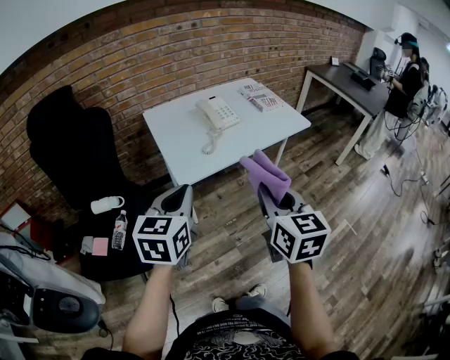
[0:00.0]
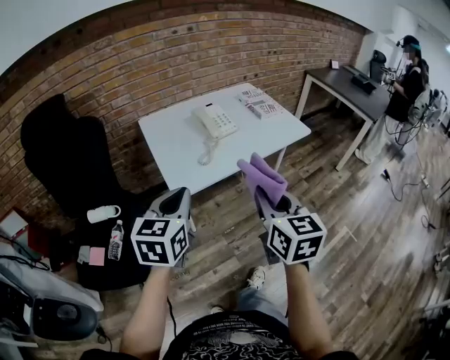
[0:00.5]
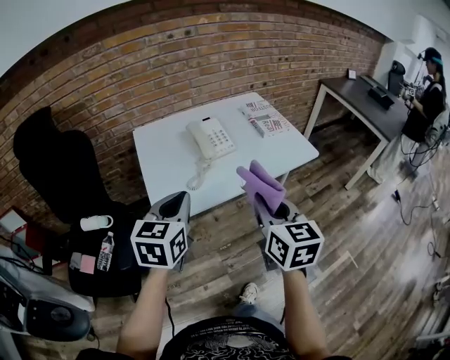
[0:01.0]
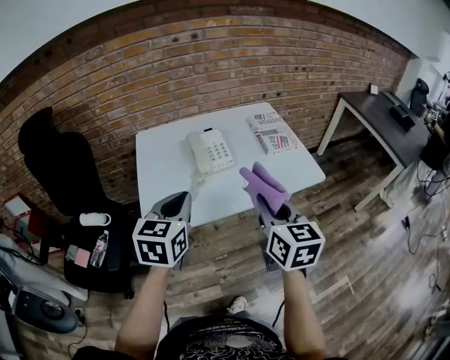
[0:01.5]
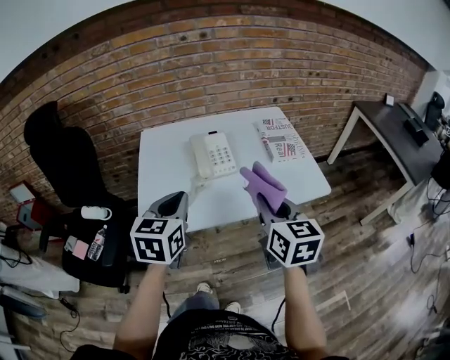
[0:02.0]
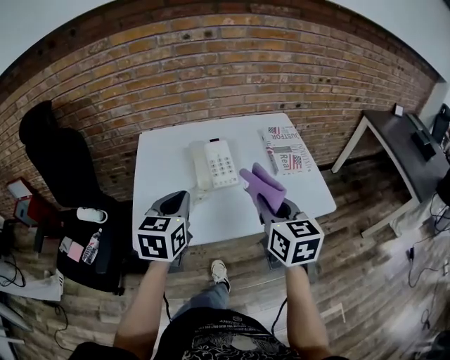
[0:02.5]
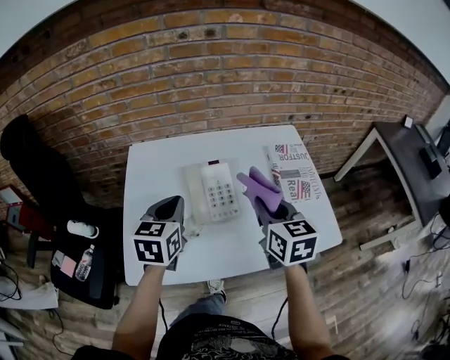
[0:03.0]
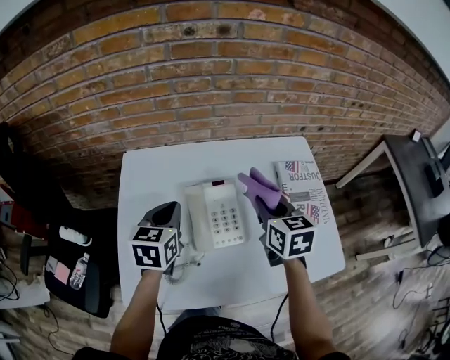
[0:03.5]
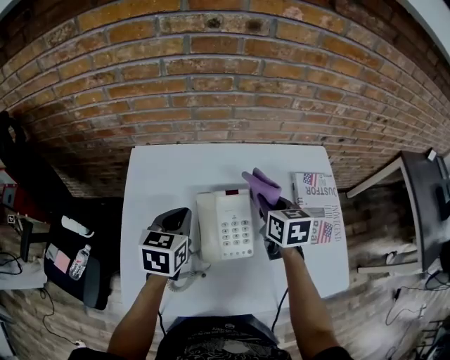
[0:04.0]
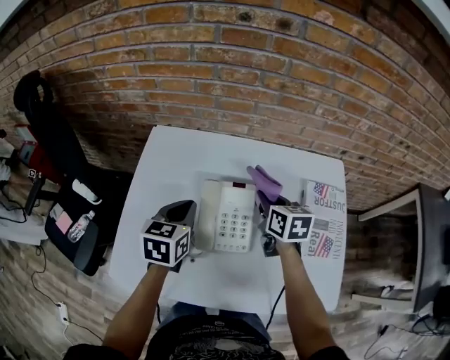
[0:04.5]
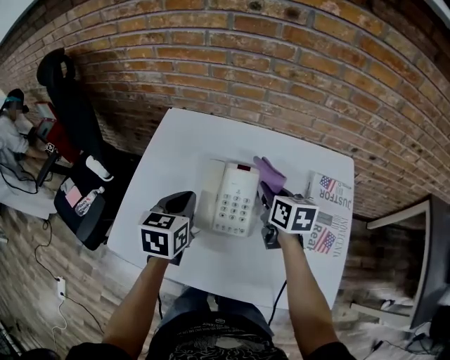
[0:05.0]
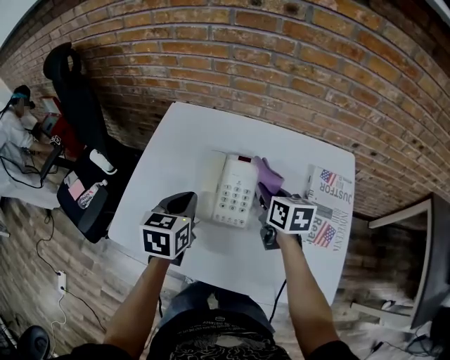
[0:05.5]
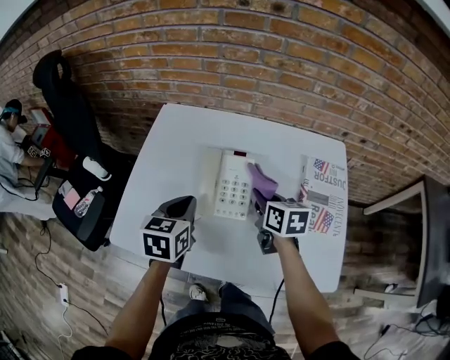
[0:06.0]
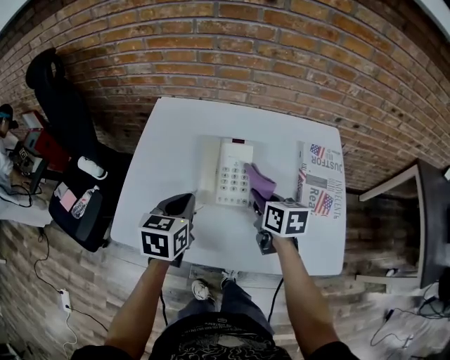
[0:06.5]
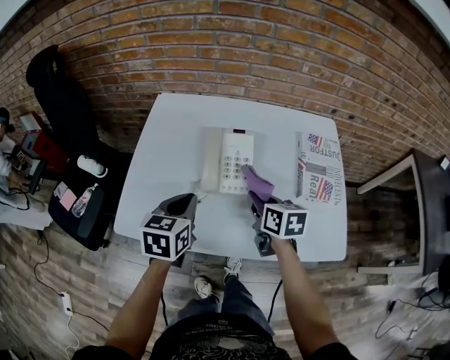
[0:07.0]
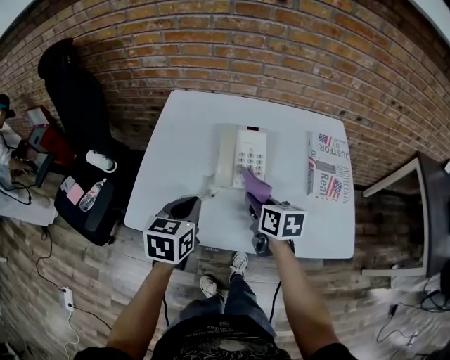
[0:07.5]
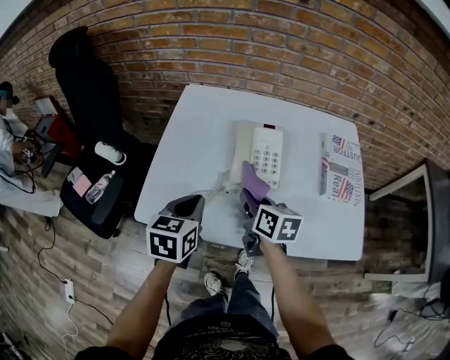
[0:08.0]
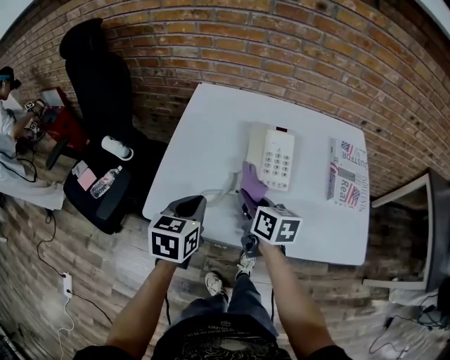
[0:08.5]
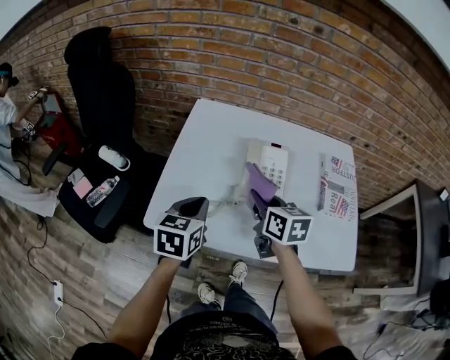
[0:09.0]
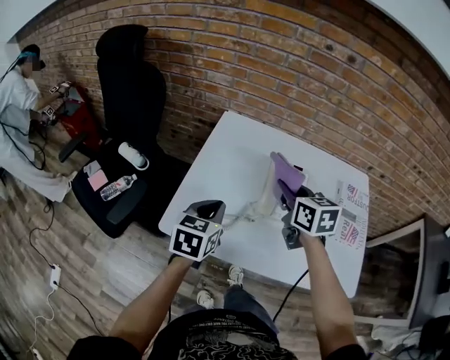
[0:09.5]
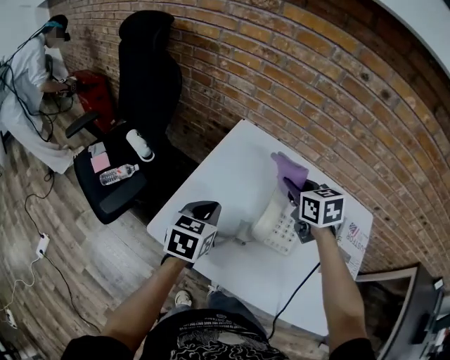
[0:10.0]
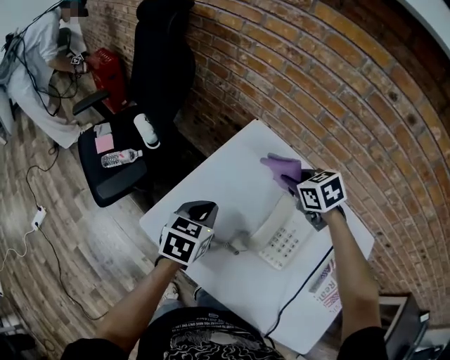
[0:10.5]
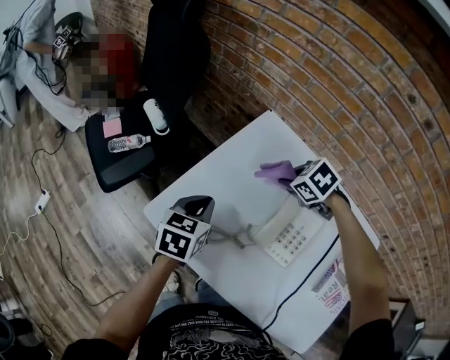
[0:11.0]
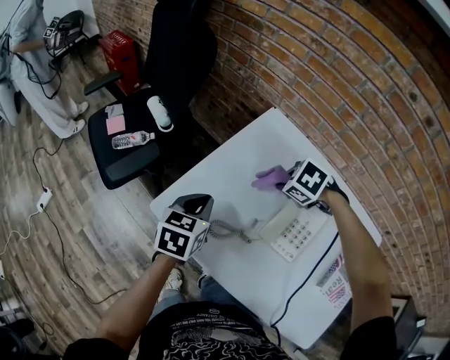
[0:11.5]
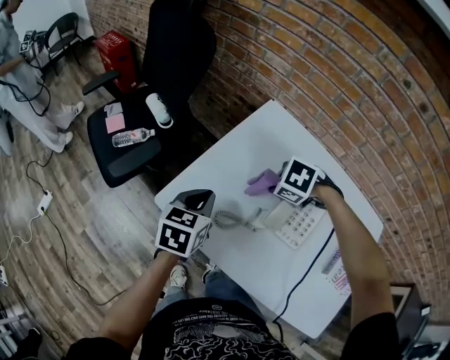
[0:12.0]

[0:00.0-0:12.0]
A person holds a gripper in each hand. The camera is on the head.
0:00.0 to 0:02.0: Both grippers travel together forward and to the right, about 35 cm.
0:02.0 to 0:04.0: The two grippers go some 35 cm forward. The right gripper changes its angle by some 20 degrees.
0:04.0 to 0:06.0: The right gripper shifts roughly 10 cm backward, while the left gripper is displaced backward by about 10 cm.
0:06.0 to 0:08.0: The left gripper is displaced backward and to the left by approximately 10 cm. Meanwhile the right gripper travels to the left and backward by approximately 15 cm.
0:08.0 to 0:10.0: The left gripper shifts approximately 10 cm forward. The right gripper goes approximately 20 cm forward and upward, and rotates roughly 40 degrees.
0:10.0 to 0:12.0: The right gripper shifts roughly 10 cm downward, and angles its fingers downward, by roughly 50 degrees. The left gripper ends up roughly 5 cm from where it was.

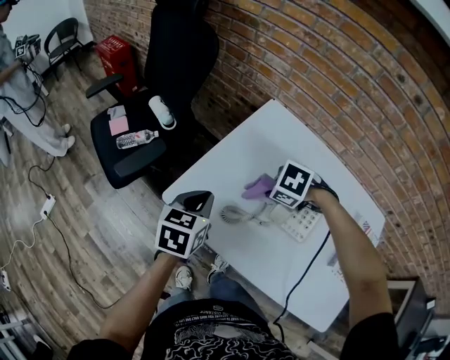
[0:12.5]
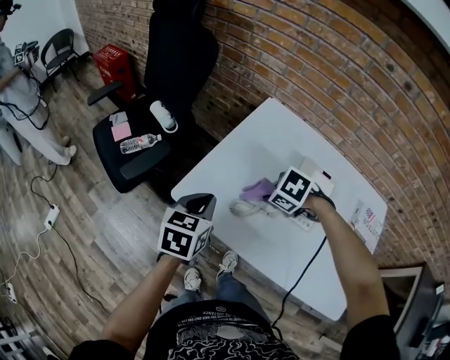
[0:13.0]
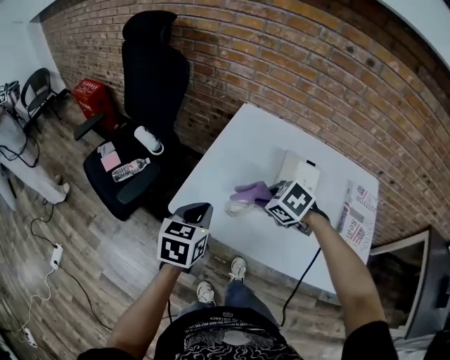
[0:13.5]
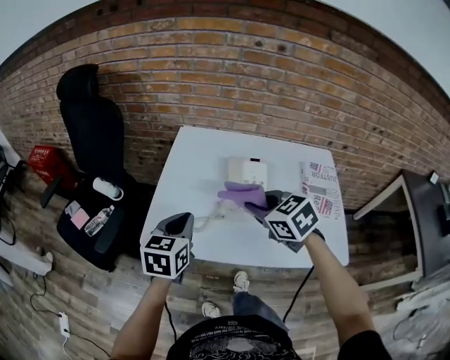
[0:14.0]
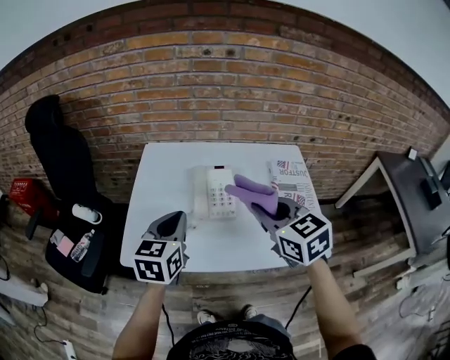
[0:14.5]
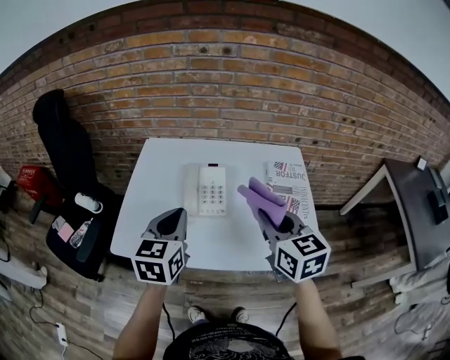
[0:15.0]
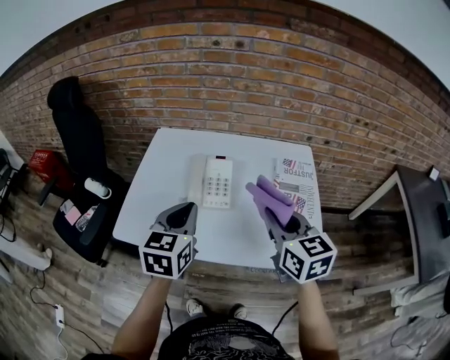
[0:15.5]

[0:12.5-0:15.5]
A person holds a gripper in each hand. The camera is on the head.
0:12.5 to 0:14.0: The left gripper changes place by about 10 cm, and rotates roughly 20 degrees, while the right gripper is displaced upward by about 15 cm, and tips its fingers upward by approximately 40 degrees.
0:14.0 to 0:15.5: The left gripper moves to the right and upward, approximately 20 cm; the right gripper heads to the right, covering some 20 cm, and turns by roughly 40 degrees.

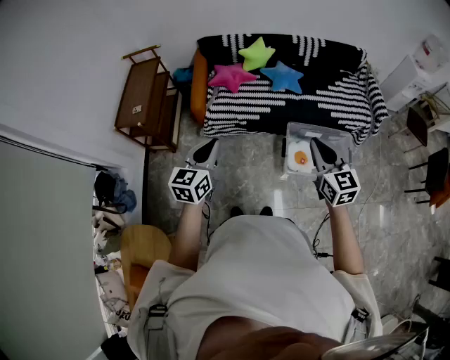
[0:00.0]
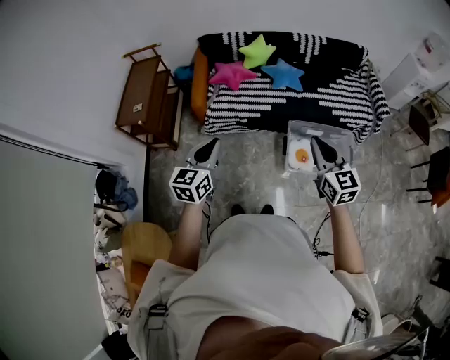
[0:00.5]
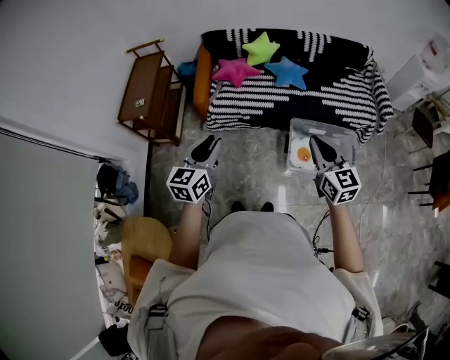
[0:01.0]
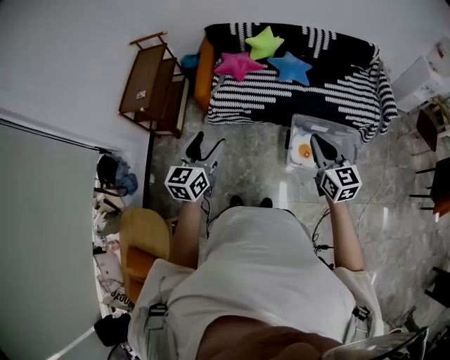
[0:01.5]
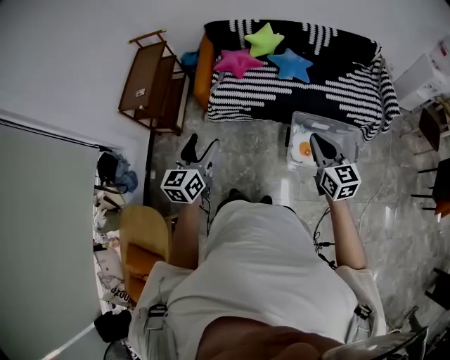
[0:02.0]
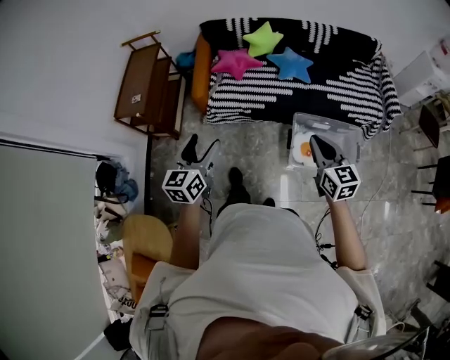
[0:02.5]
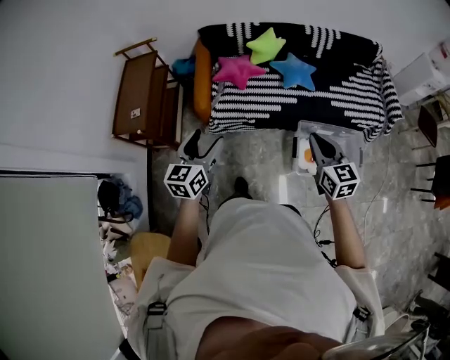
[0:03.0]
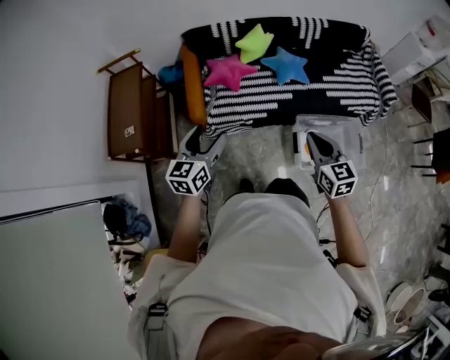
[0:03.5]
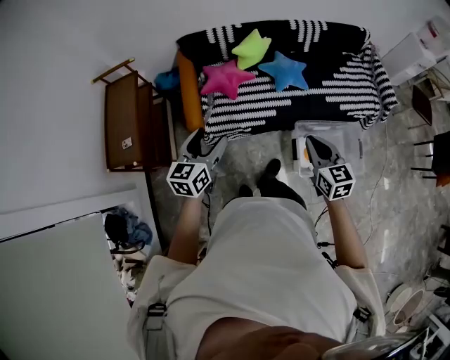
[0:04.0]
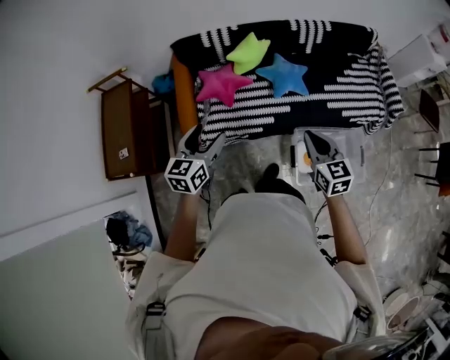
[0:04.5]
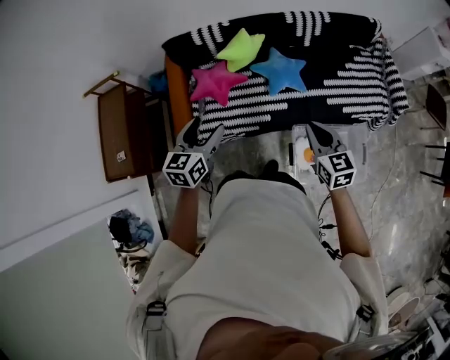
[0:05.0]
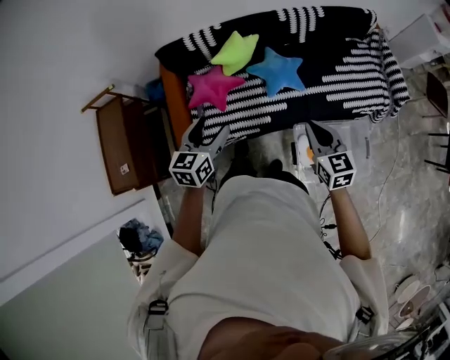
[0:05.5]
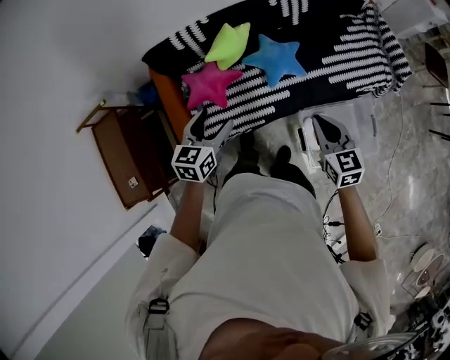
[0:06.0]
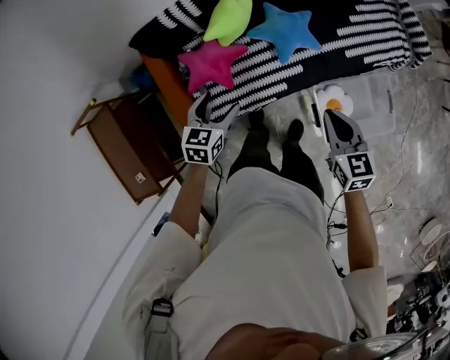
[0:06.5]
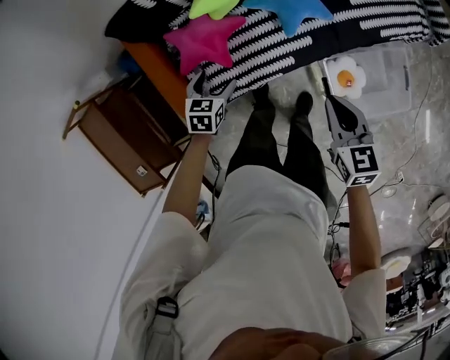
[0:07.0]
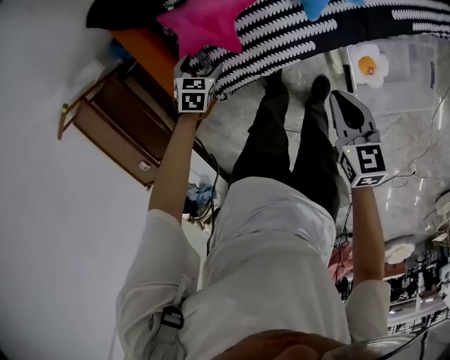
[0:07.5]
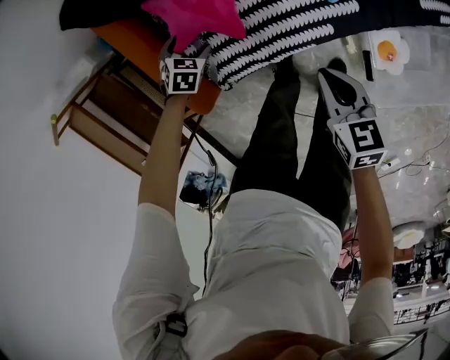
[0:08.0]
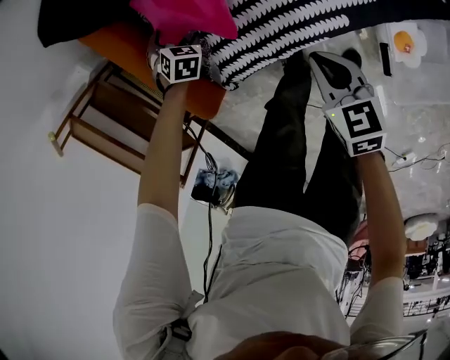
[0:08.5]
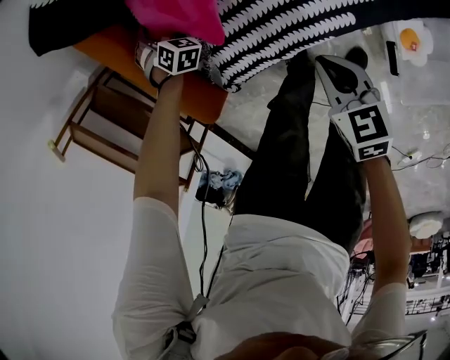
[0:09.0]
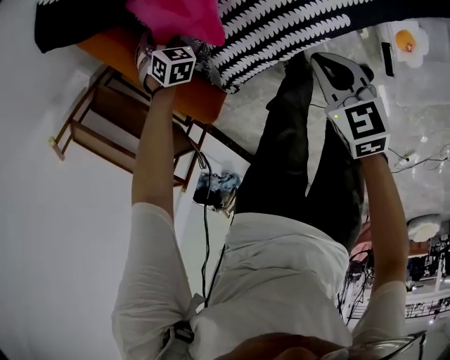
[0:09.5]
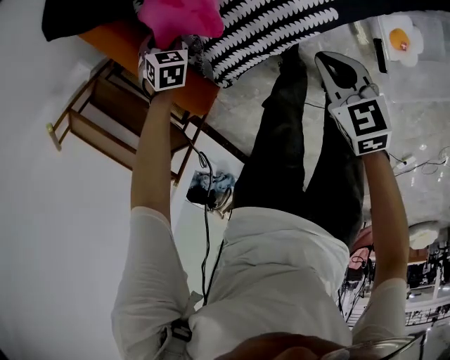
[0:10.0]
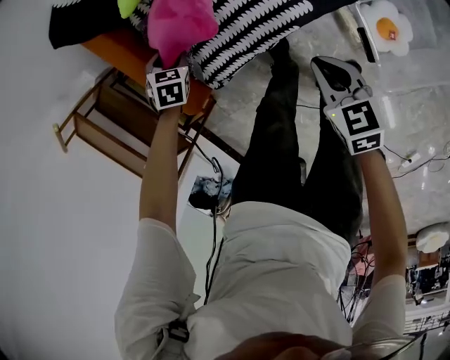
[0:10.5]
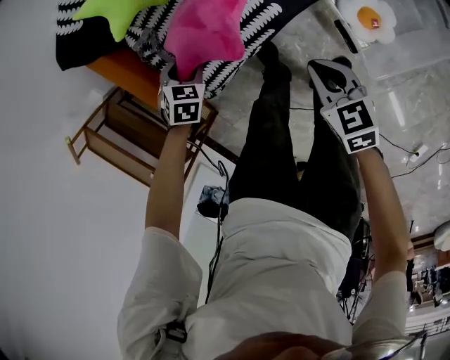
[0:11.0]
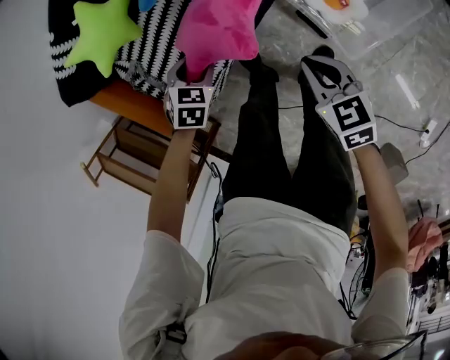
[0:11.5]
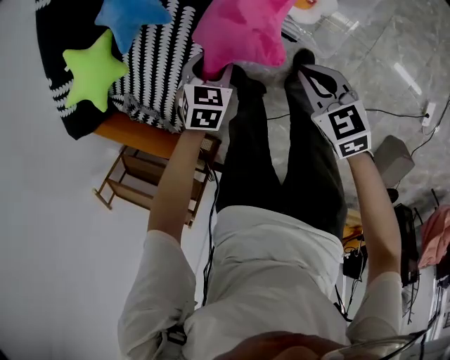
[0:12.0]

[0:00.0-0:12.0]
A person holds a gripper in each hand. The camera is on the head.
0:00.0 to 0:02.0: The left gripper opens its fingers. The right gripper goes approximately 5 cm to the right.
0:02.0 to 0:04.0: The right gripper goes some 30 cm forward and to the left; the left gripper goes approximately 35 cm forward.
0:04.0 to 0:06.0: The two grippers go roughly 30 cm forward.
0:06.0 to 0:08.0: The two grippers go some 50 cm downward. The left gripper tilts its fingers some 50 degrees downward. Meanwhile the right gripper turns by roughly 30 degrees.
0:08.0 to 0:10.0: The right gripper is displaced downward by some 5 cm. Meanwhile the left gripper goes downward and returns, roughly 10 cm each way, and closes.
0:10.0 to 0:12.0: The left gripper changes place by approximately 60 cm, and changes its angle by roughly 40 degrees, while the right gripper shifts by approximately 40 cm, and changes its angle by some 30 degrees.
